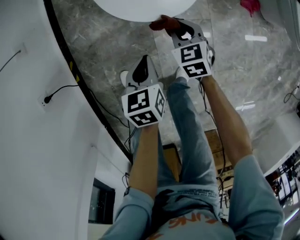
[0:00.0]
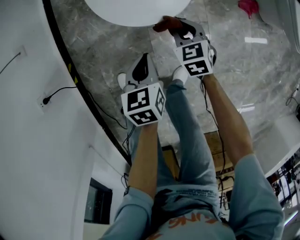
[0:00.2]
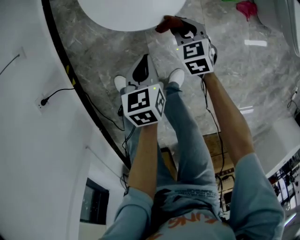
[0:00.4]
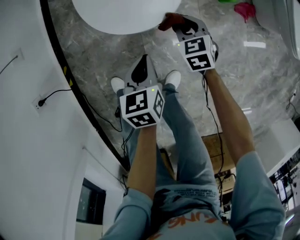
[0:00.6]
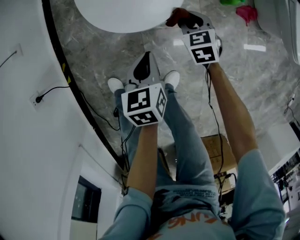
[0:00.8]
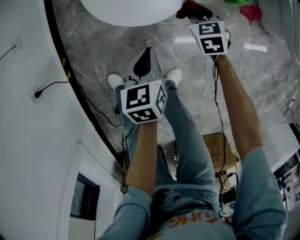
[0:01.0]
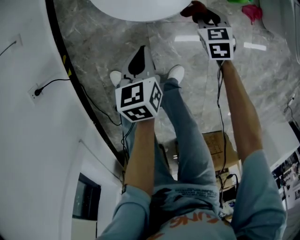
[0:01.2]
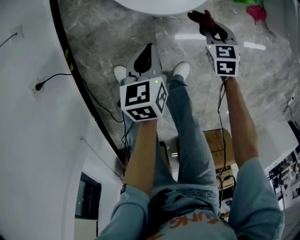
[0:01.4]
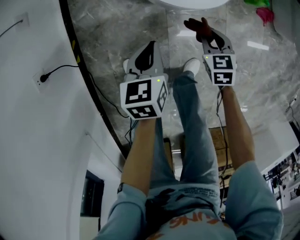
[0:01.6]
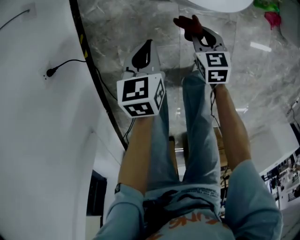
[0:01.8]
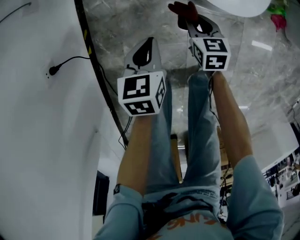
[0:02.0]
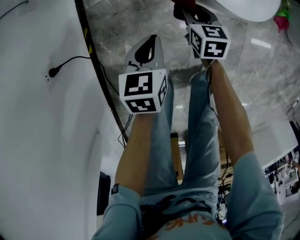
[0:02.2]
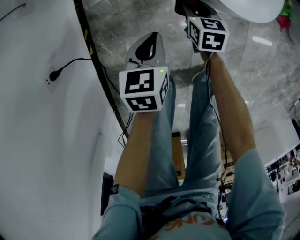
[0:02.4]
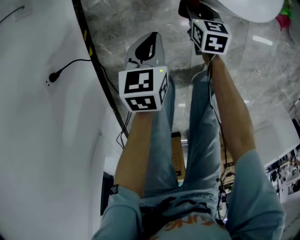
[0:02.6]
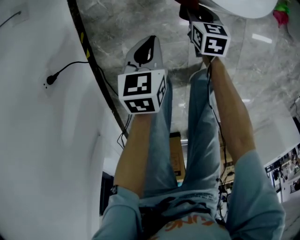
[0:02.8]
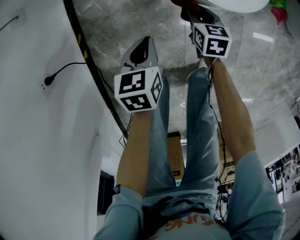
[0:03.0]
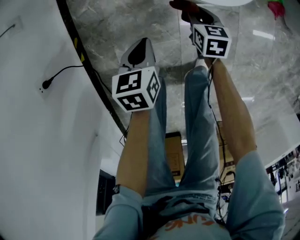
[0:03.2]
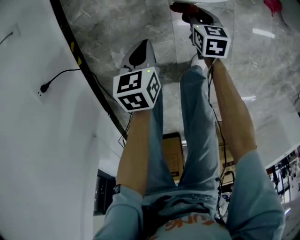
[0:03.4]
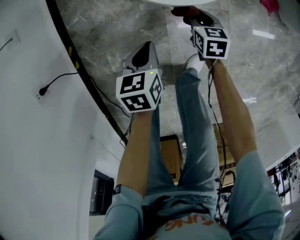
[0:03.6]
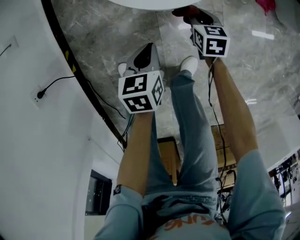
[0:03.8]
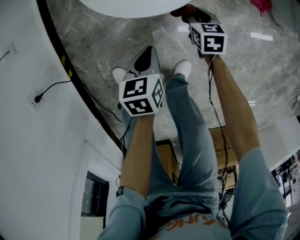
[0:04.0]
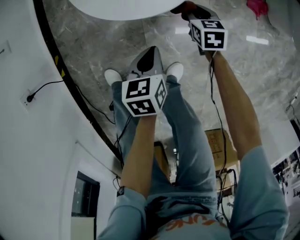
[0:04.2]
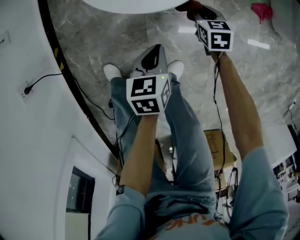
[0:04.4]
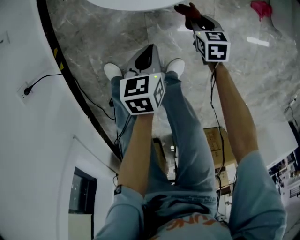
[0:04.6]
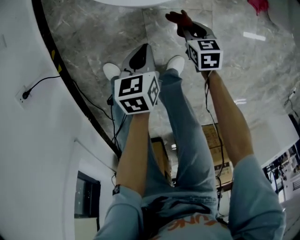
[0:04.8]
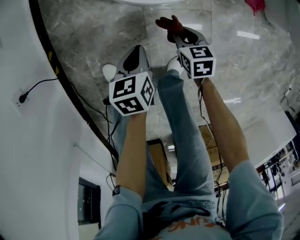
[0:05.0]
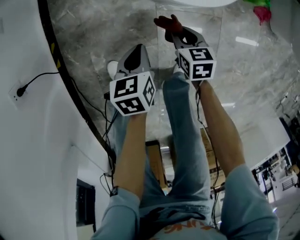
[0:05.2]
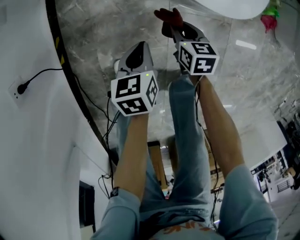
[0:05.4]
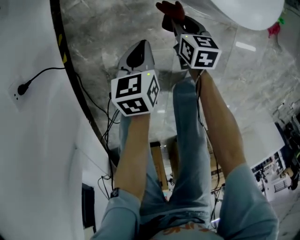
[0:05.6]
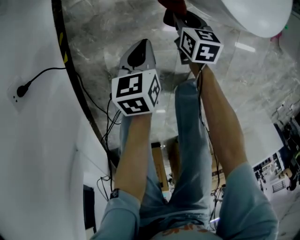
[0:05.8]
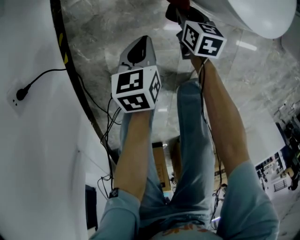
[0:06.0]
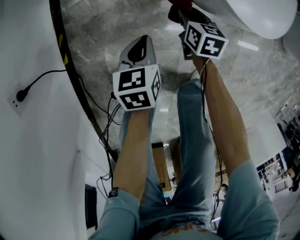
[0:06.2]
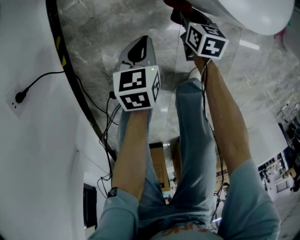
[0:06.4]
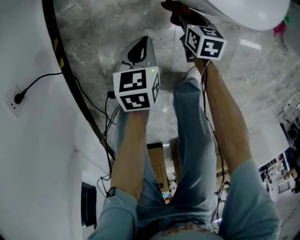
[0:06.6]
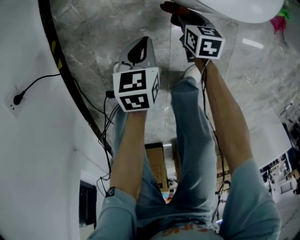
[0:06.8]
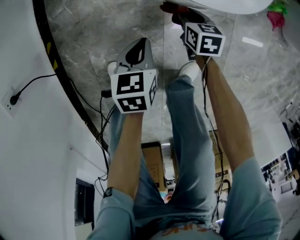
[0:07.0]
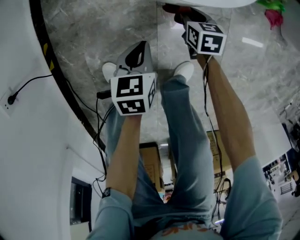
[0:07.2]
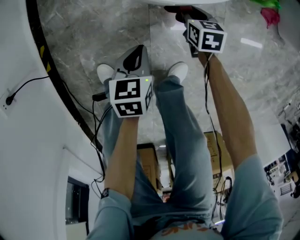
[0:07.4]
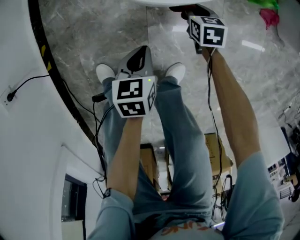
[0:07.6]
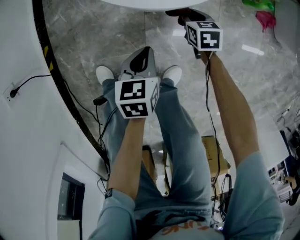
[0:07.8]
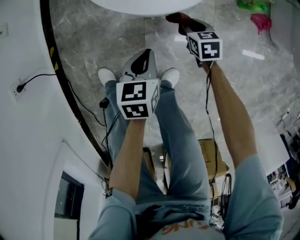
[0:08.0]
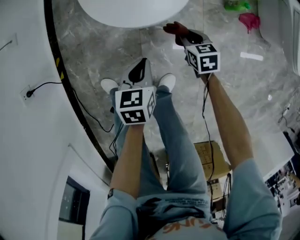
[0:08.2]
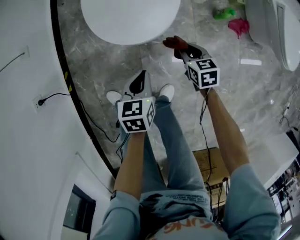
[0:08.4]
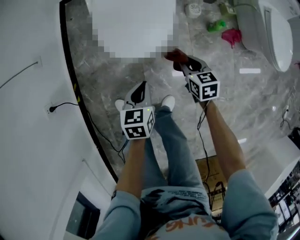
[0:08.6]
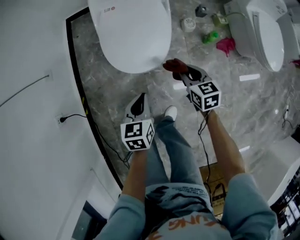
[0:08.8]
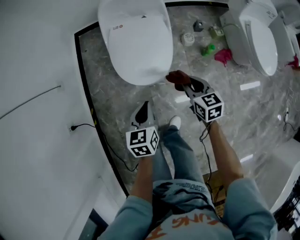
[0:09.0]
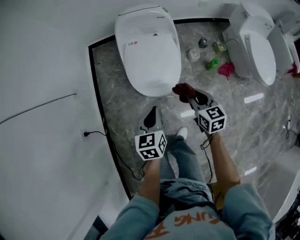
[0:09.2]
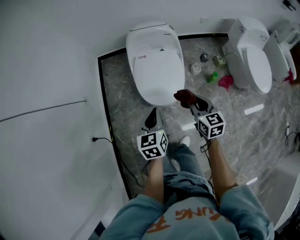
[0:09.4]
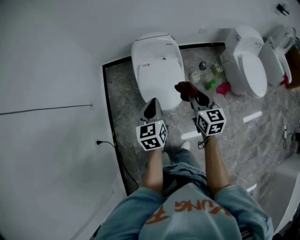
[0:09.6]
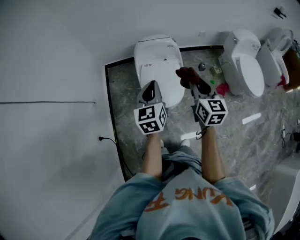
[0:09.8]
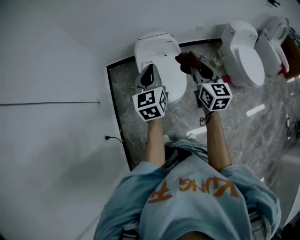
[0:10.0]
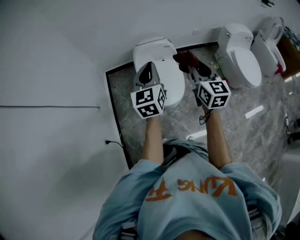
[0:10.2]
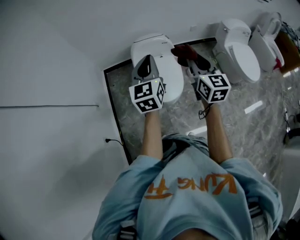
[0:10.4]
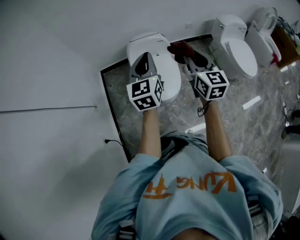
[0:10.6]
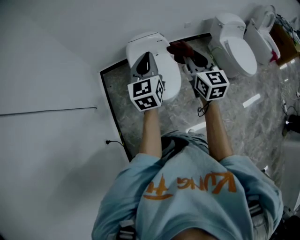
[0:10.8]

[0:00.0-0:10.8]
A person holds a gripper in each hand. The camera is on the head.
0:00.0 to 0:01.6: The left gripper is displaced to the left by about 5 cm; the right gripper moves backward, about 5 cm.
0:01.6 to 0:03.0: The right gripper shifts about 15 cm to the left, downward and forward, and rotates approximately 20 degrees. The left gripper shifts roughly 15 cm to the left and downward.
0:03.0 to 0:04.6: The grippers both shift to the right by about 20 cm.
0:04.6 to 0:06.2: The left gripper heads to the left and downward, covering about 25 cm. Meanwhile the right gripper is displaced to the left by roughly 25 cm.
0:06.2 to 0:07.8: Both grippers move to the right, approximately 20 cm.
0:07.8 to 0:09.2: The two grippers go some 50 cm upward. The left gripper changes its angle by some 20 degrees. The right gripper changes its angle by approximately 30 degrees.
0:09.2 to 0:10.8: The two grippers go roughly 35 cm upward. The right gripper rotates approximately 30 degrees; the left gripper angles its fingers upward, by roughly 30 degrees.

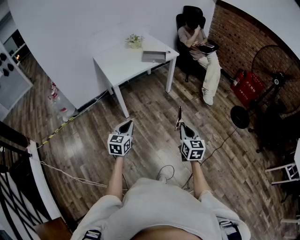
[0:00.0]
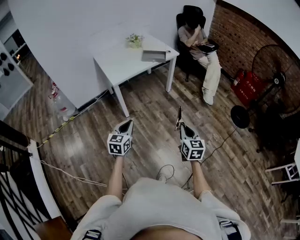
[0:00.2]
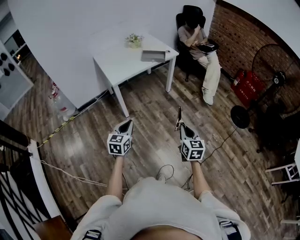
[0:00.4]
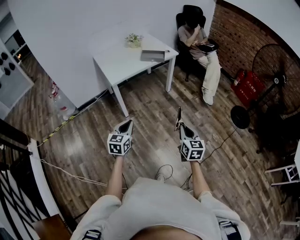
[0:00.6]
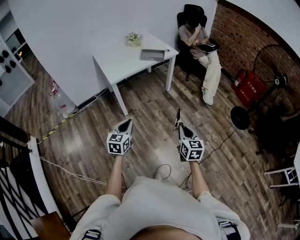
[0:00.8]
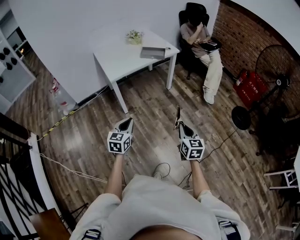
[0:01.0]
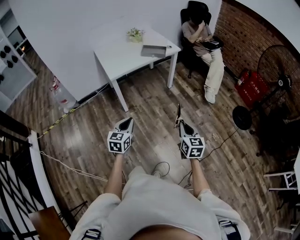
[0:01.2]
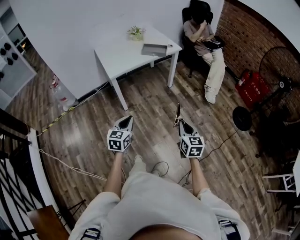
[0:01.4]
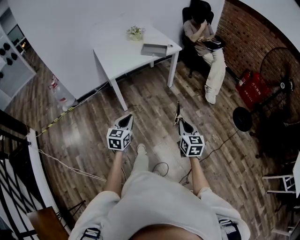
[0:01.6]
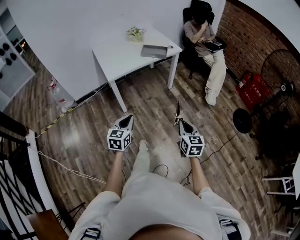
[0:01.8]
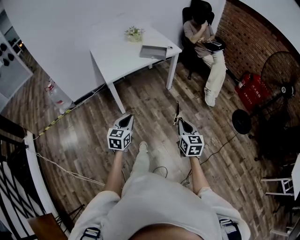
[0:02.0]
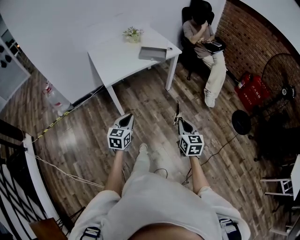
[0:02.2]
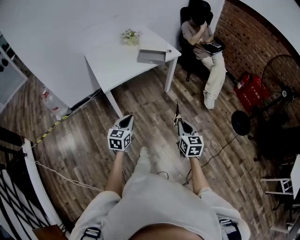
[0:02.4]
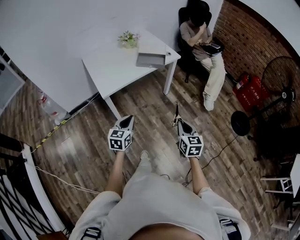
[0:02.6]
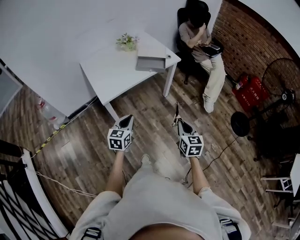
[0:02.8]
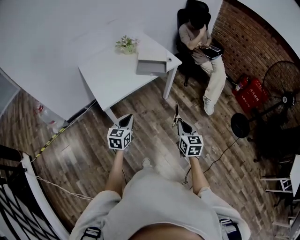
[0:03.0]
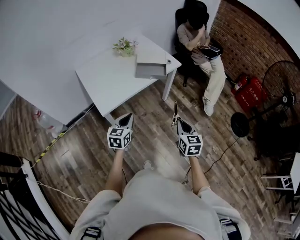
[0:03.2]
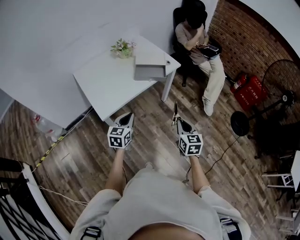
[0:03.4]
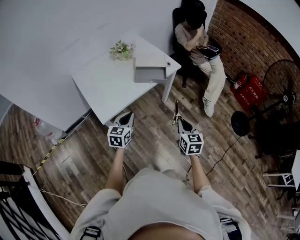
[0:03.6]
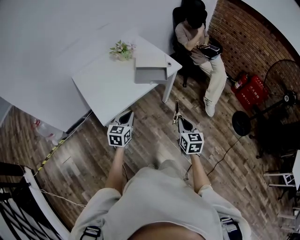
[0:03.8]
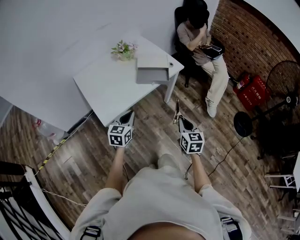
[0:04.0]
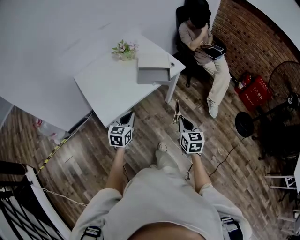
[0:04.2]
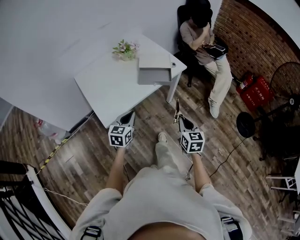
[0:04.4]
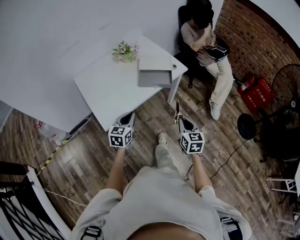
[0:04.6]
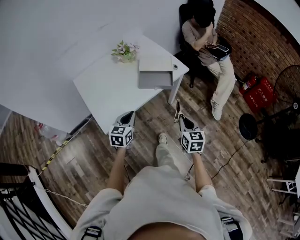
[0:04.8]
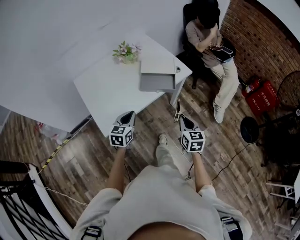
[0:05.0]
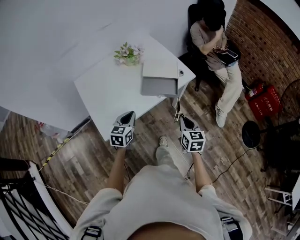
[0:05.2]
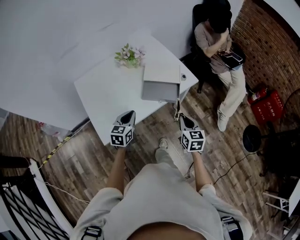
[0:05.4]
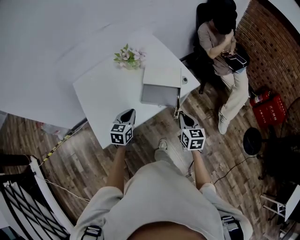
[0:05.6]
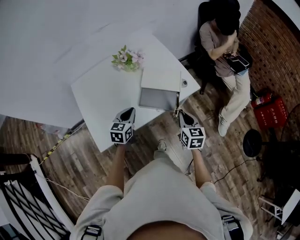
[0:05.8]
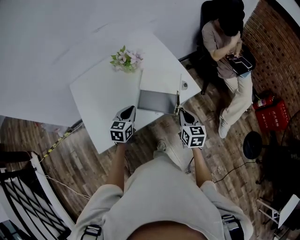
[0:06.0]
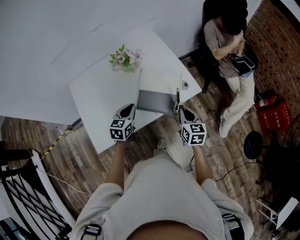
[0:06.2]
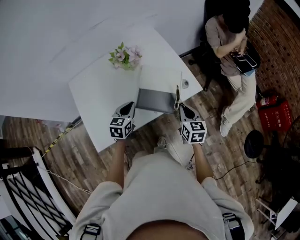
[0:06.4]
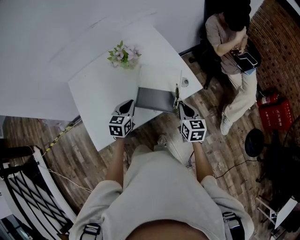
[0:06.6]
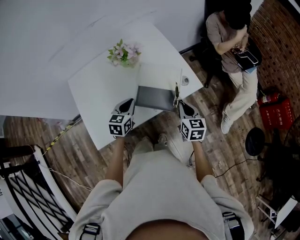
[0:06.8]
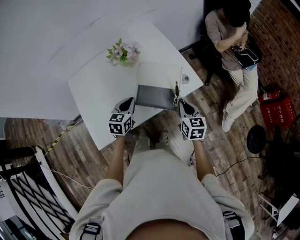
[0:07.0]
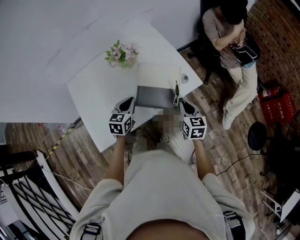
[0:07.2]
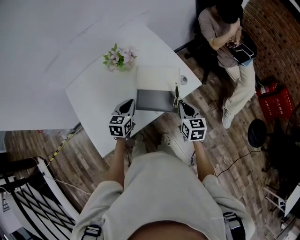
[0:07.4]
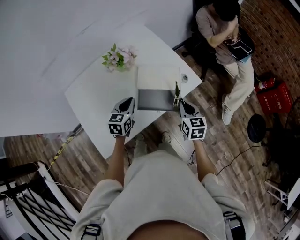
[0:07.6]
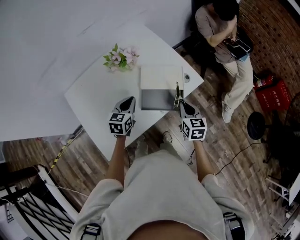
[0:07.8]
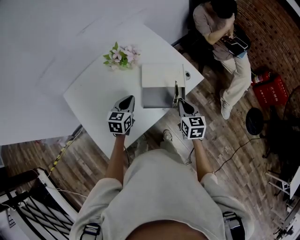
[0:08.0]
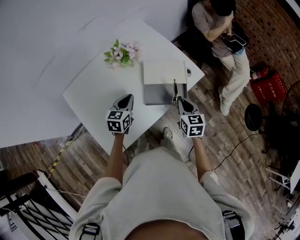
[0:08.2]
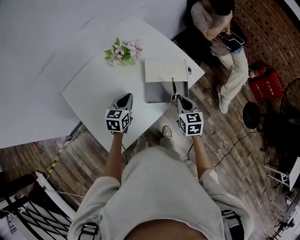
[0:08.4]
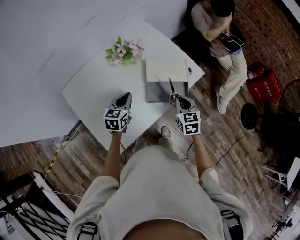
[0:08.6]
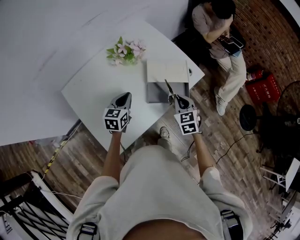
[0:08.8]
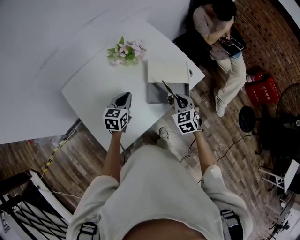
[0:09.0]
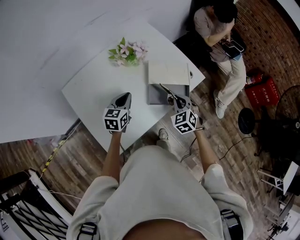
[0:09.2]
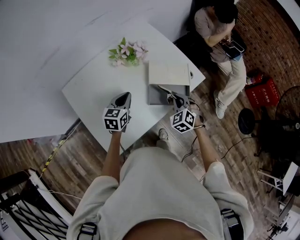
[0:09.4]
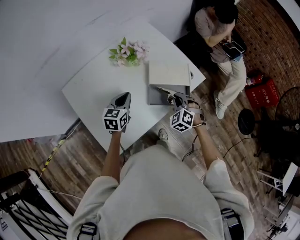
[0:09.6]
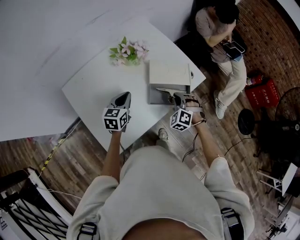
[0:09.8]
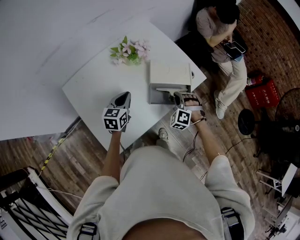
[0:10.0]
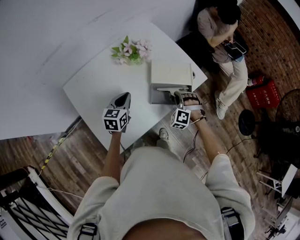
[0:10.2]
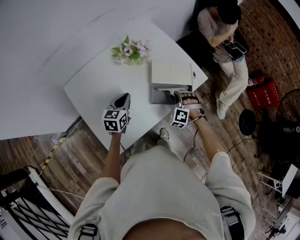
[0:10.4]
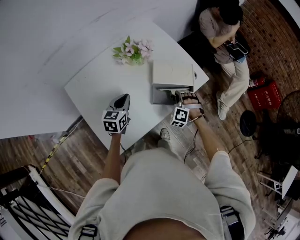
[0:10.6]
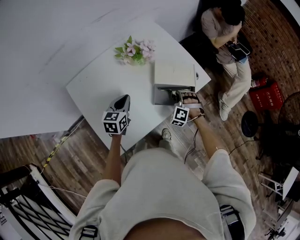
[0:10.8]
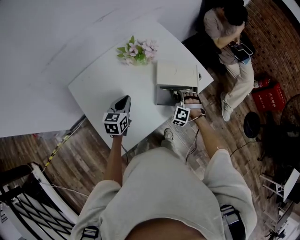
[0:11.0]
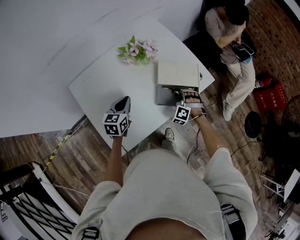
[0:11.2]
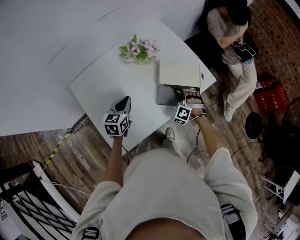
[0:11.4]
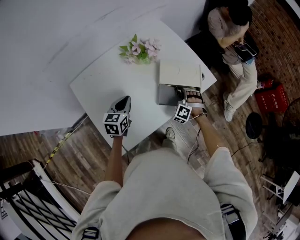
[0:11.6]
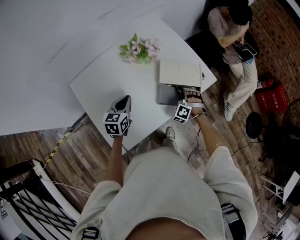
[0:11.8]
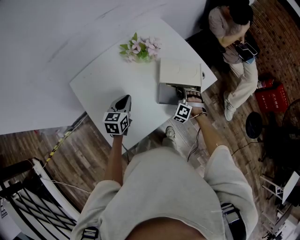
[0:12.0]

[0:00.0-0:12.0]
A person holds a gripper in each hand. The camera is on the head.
0:00.0 to 0:01.6: The right gripper heads forward and to the right, covering approximately 10 cm. Meanwhile the left gripper moves to the right, roughly 5 cm.
0:01.6 to 0:03.0: Both grippers travel together forward, some 30 cm.
0:03.0 to 0:04.4: The two grippers go approximately 15 cm forward.
0:04.4 to 0:06.0: Both grippers move forward, about 30 cm.
0:06.0 to 0:07.6: The right gripper ends up approximately 5 cm from where it was, while the left gripper shifts about 5 cm forward.
0:07.6 to 0:09.0: Both grippers move to the left, roughly 10 cm. The right gripper changes its angle by about 30 degrees.
0:09.0 to 0:10.4: The right gripper travels downward by some 5 cm, and twists about 50 degrees counterclockwise, seen from behind.
0:10.4 to 0:12.0: The right gripper shifts roughly 5 cm downward.

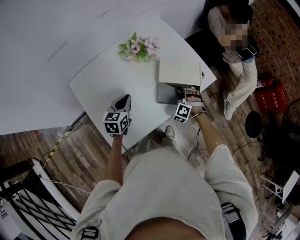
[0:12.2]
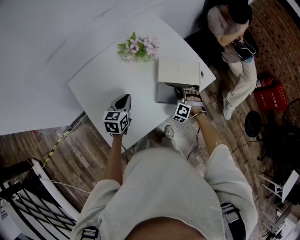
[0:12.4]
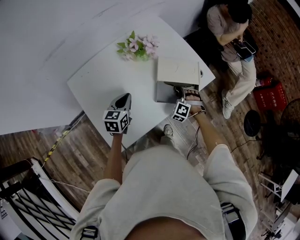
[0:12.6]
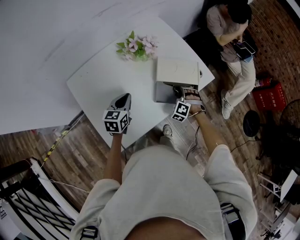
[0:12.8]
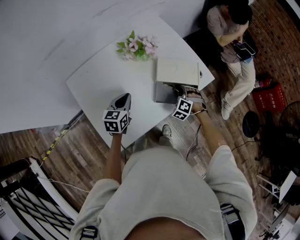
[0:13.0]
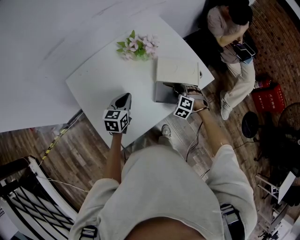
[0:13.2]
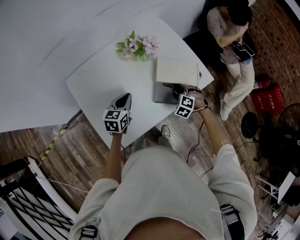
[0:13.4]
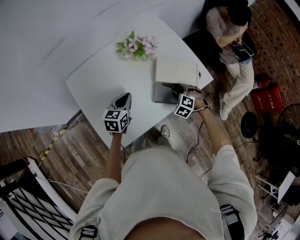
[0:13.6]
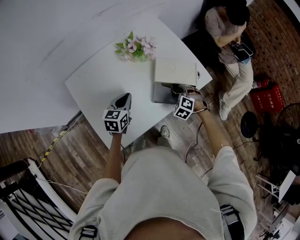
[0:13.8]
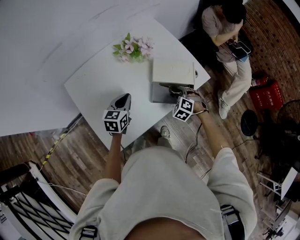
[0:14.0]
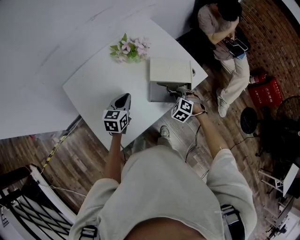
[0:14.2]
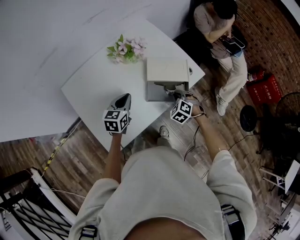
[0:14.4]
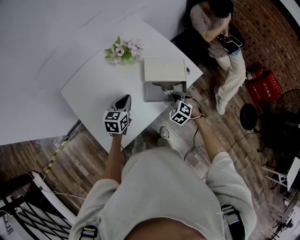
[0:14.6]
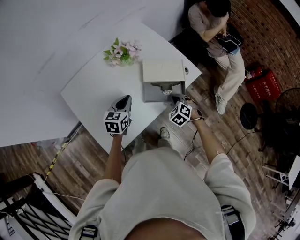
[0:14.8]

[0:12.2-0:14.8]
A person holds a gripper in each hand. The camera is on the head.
0:12.2 to 0:13.4: The right gripper turns by about 20 degrees, and opens.
0:13.4 to 0:14.8: The left gripper shifts approximately 5 cm to the right. Meanwhile the right gripper shifts roughly 5 cm backward, turns by some 20 degrees, and closes up.
